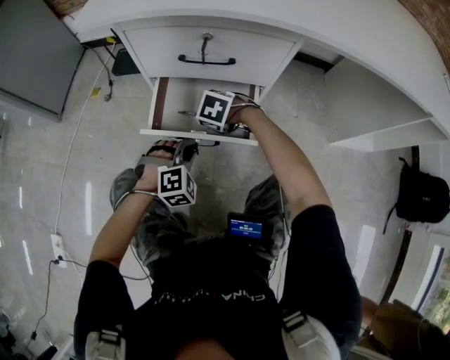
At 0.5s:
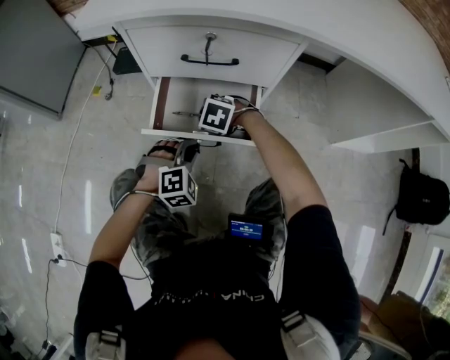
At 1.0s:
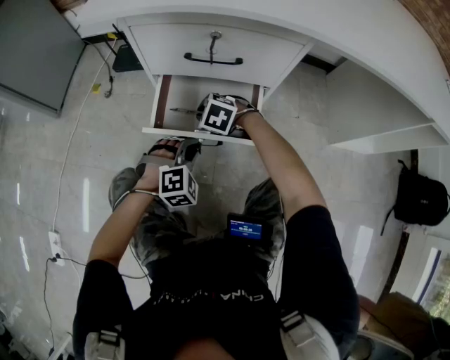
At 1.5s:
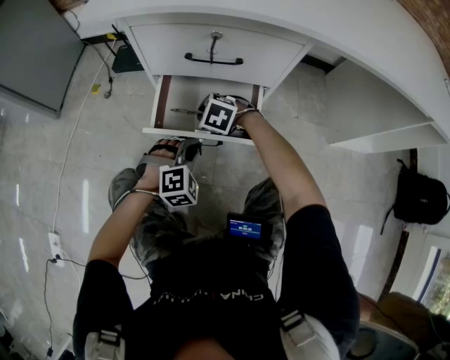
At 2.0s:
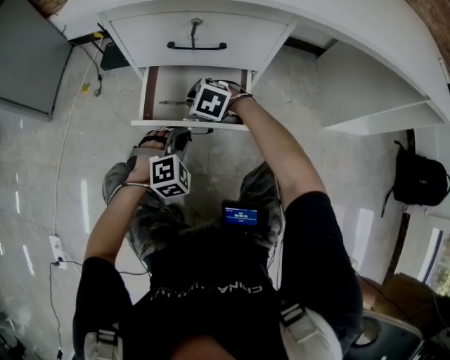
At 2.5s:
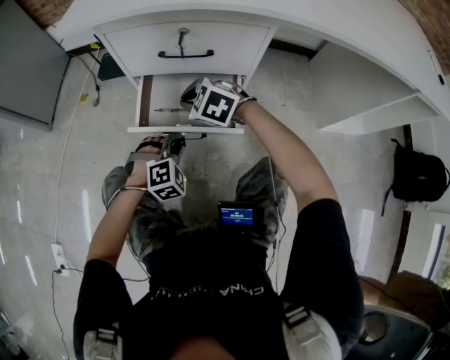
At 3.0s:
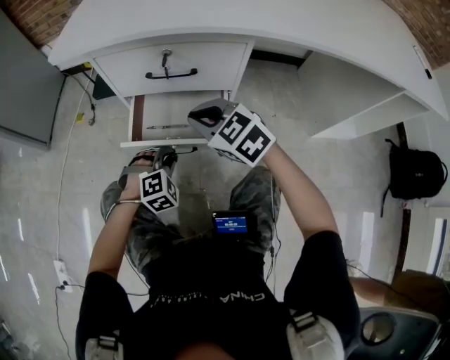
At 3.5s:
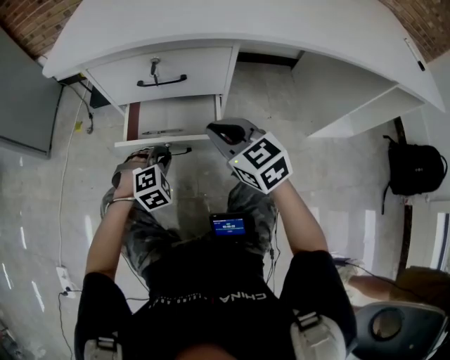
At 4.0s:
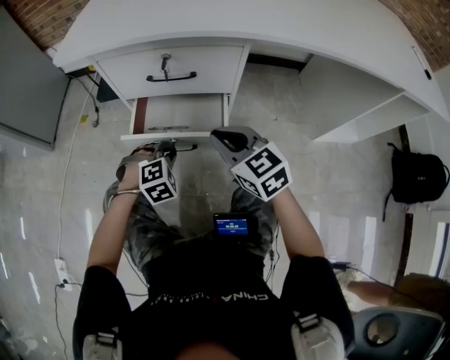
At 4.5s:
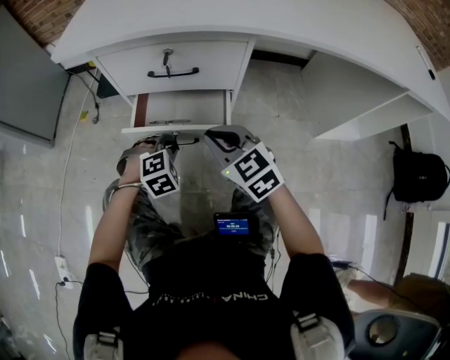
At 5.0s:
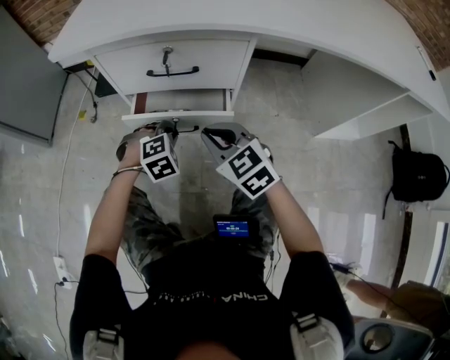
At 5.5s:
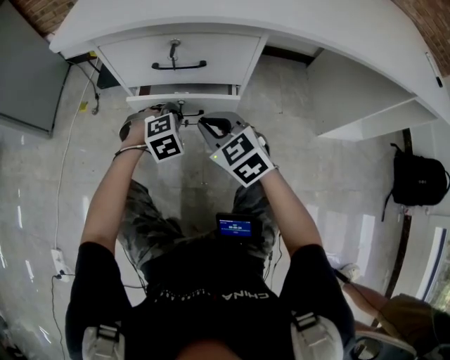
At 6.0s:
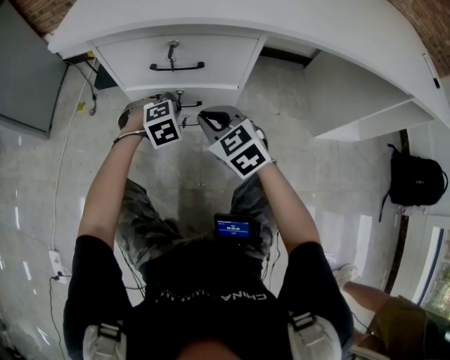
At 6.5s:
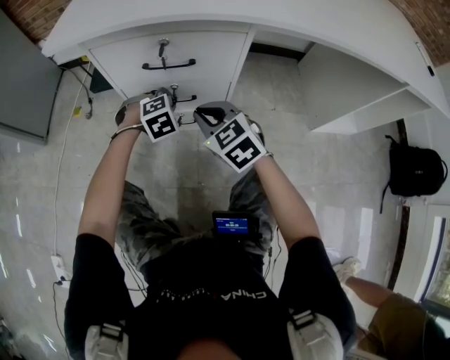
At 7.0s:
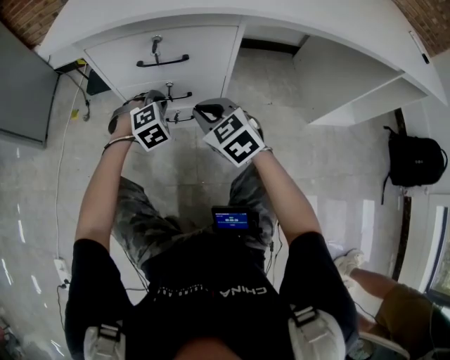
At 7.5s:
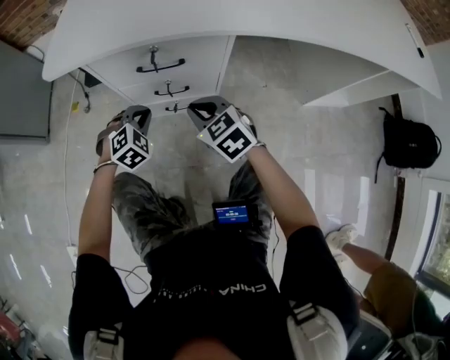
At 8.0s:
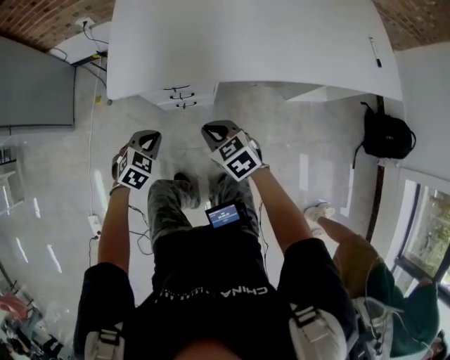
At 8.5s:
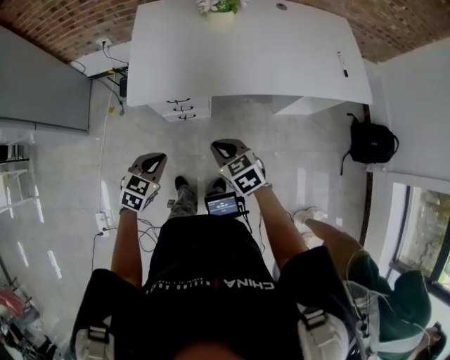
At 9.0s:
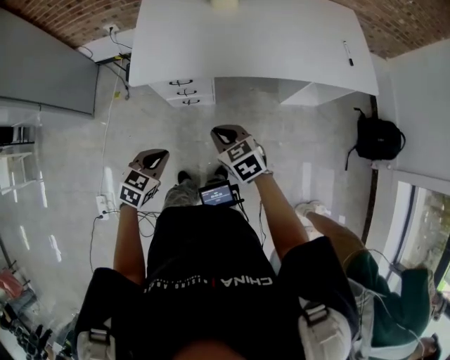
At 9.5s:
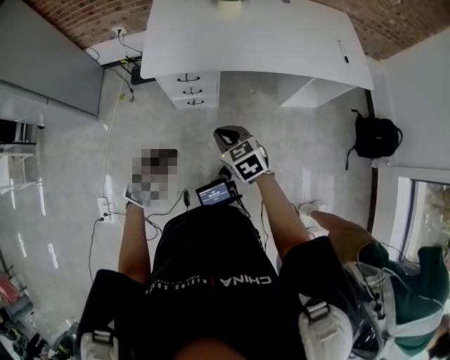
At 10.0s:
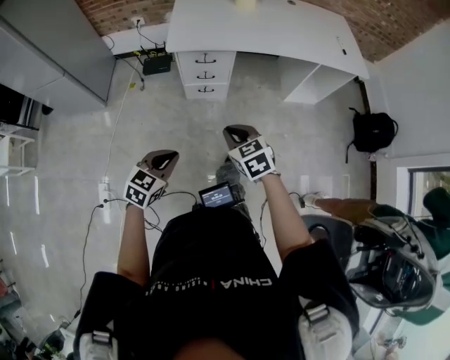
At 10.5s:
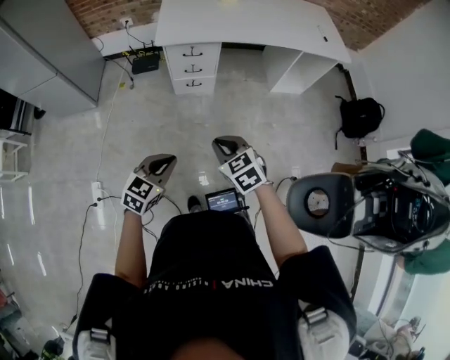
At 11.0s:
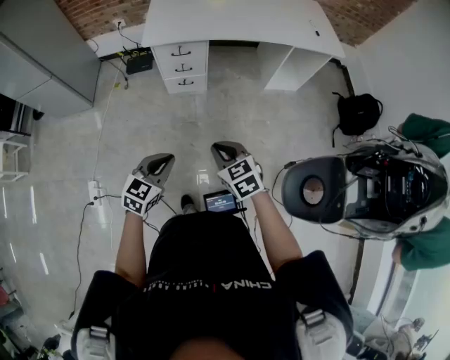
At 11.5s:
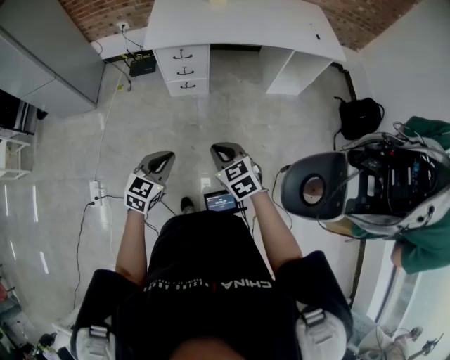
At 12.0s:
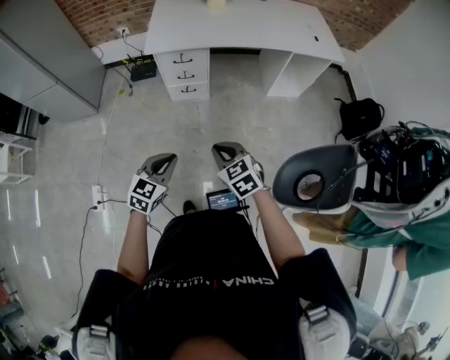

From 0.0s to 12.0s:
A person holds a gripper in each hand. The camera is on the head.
From 0.0s to 2.0s: The grippers move only a little.
From 2.0s to 4.0s: The right gripper moves upward, backward and to the right, about 25 cm, and tilts its fingers about 30 degrees upward.
From 4.0s to 6.0s: The right gripper shifts approximately 5 cm forward, while the left gripper heads forward, covering roughly 10 cm.
From 6.0s to 8.0s: The left gripper moves upward and backward, approximately 35 cm, and rotates about 30 degrees, while the right gripper is displaced upward by approximately 25 cm, and swivels approximately 20 degrees.
From 8.0s to 10.0s: Both grippers move backward and upward, some 50 cm. The left gripper changes its angle by approximately 20 degrees.
From 10.0s to 12.0s: The left gripper is displaced to the right and backward by approximately 15 cm, while the right gripper heads backward and to the right, covering some 15 cm.

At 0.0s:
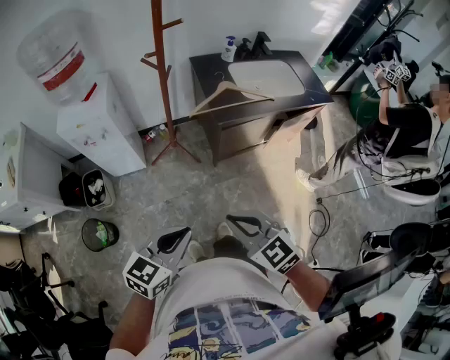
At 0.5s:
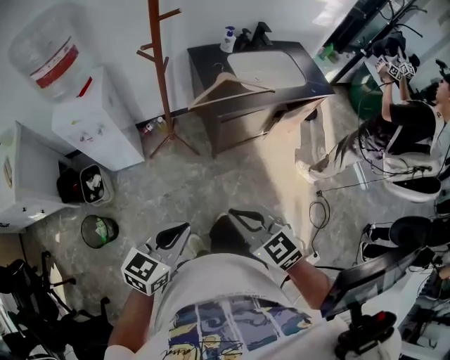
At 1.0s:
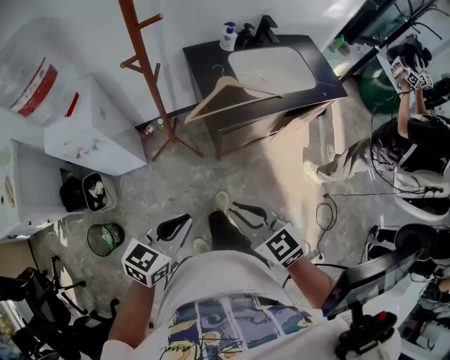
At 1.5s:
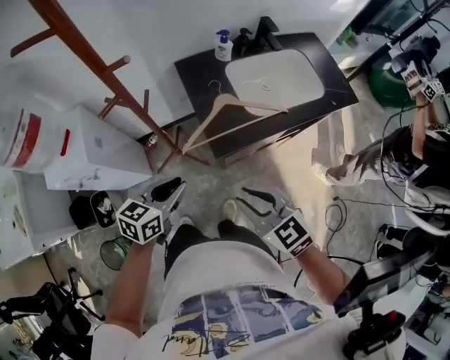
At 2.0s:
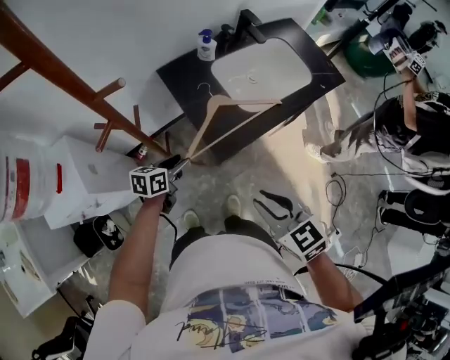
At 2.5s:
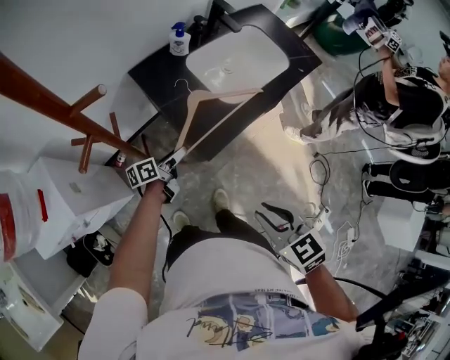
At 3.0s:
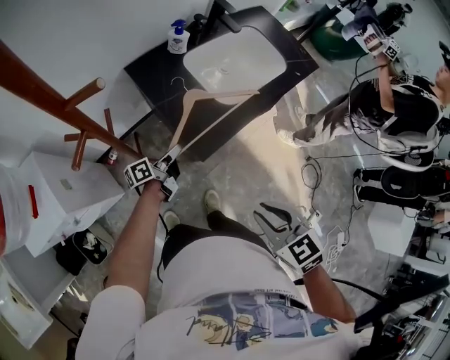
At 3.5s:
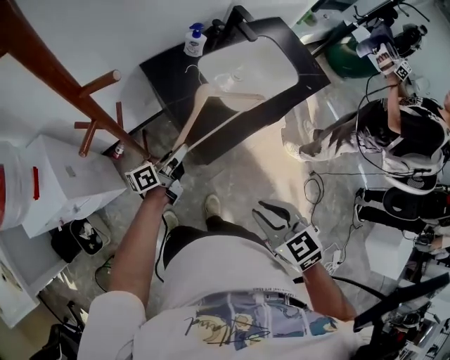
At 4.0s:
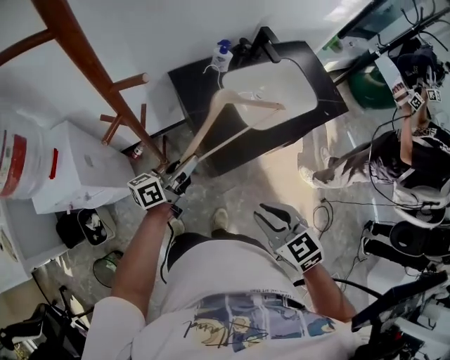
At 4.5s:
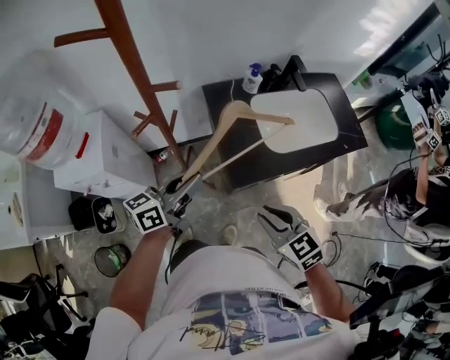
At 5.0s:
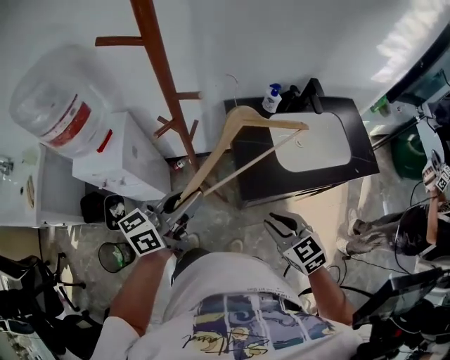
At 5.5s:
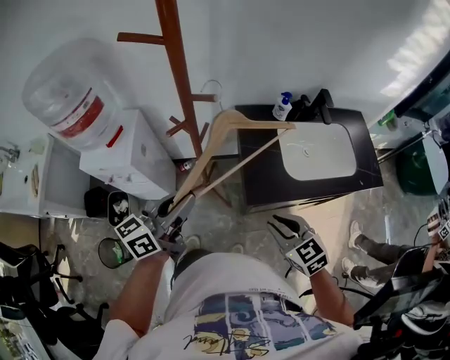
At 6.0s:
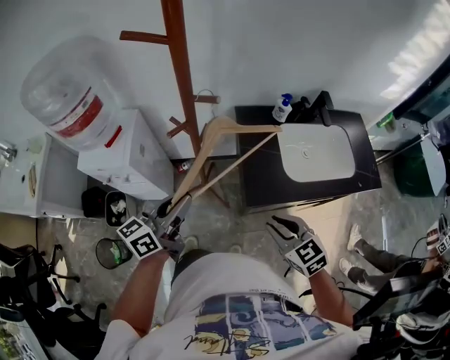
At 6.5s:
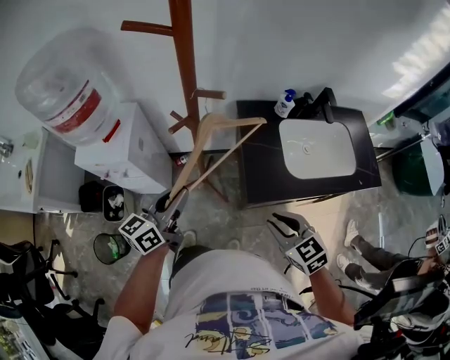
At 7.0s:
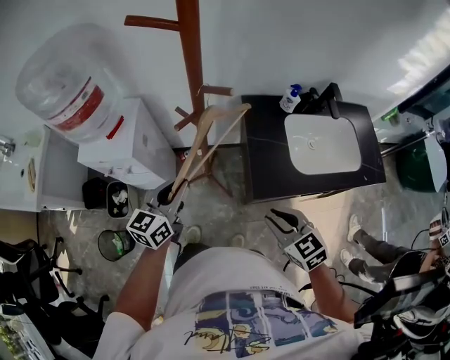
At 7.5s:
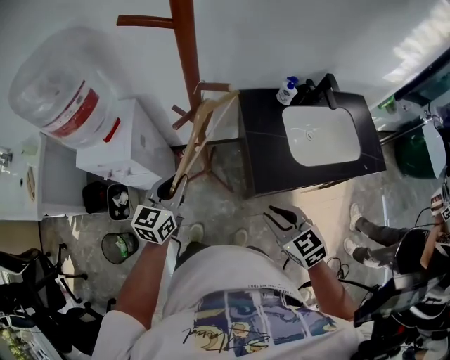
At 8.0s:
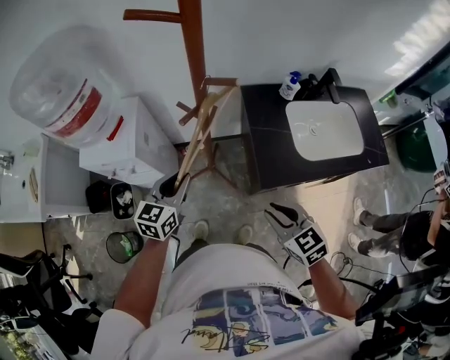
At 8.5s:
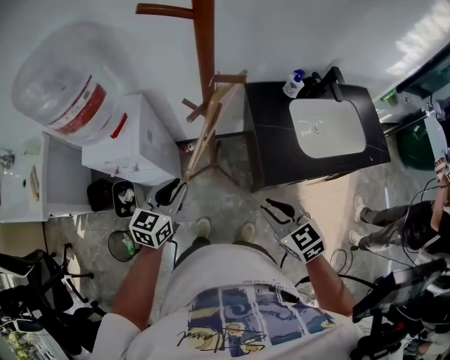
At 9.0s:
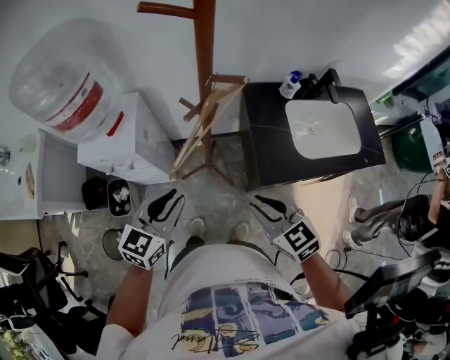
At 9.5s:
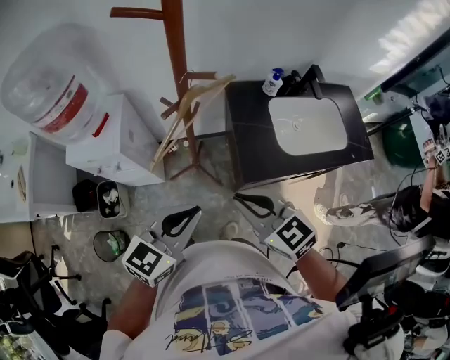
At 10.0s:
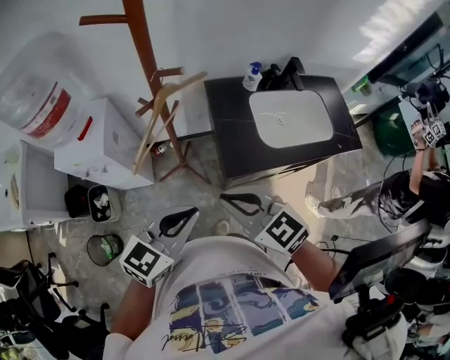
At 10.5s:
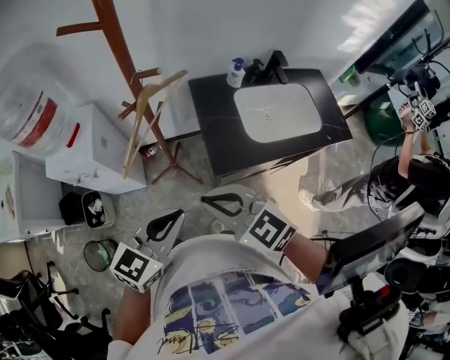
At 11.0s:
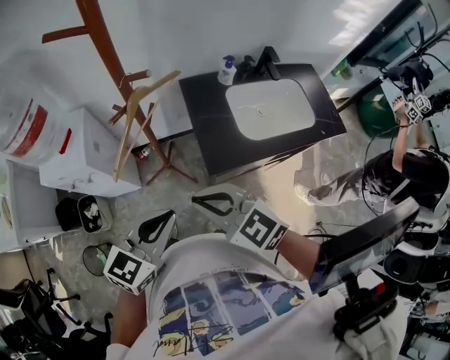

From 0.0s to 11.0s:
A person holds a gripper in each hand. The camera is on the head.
From 0.0s to 2.0s: The right gripper heads forward, covering some 30 cm, changes its angle by roughly 30 degrees, and opens its fingers. The left gripper heads forward, covering some 50 cm, turns by approximately 30 degrees, and opens up.
From 2.0s to 3.5s: The left gripper travels downward and back again, roughly 5 cm each way, tilts its fingers about 30 degrees upward, and closes its fingers.
From 3.5s to 5.5s: The left gripper shifts approximately 25 cm upward, and rotates some 40 degrees, while the right gripper changes place by some 10 cm, and rotates some 30 degrees.
From 5.5s to 7.5s: The left gripper shifts roughly 15 cm downward, to the left and forward, and turns by approximately 30 degrees, while the right gripper travels to the left by about 5 cm.
From 7.5s to 9.0s: The right gripper is displaced to the left by about 5 cm. Meanwhile the left gripper shifts some 10 cm backward.
From 9.0s to 11.0s: The left gripper moves to the right and backward, some 15 cm, while the right gripper heads upward, covering some 5 cm.

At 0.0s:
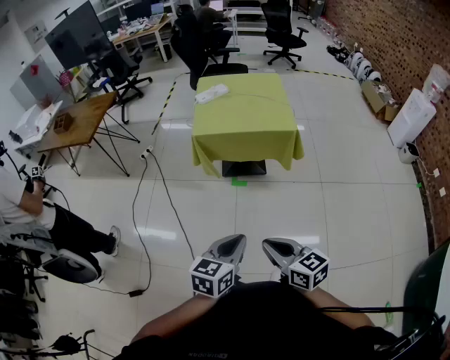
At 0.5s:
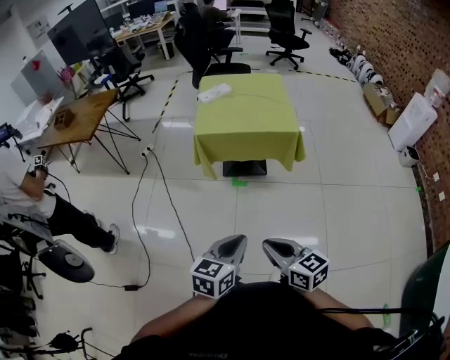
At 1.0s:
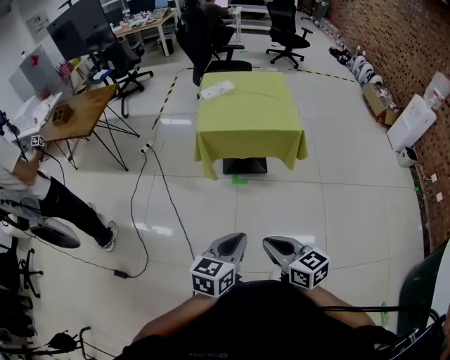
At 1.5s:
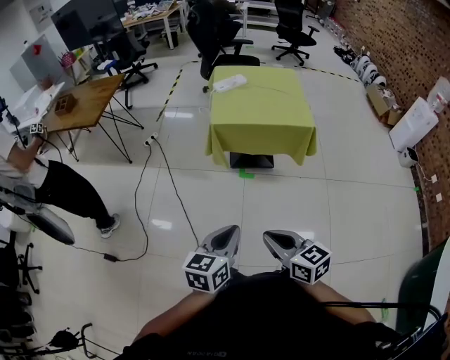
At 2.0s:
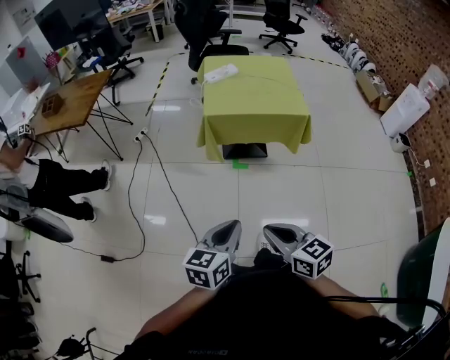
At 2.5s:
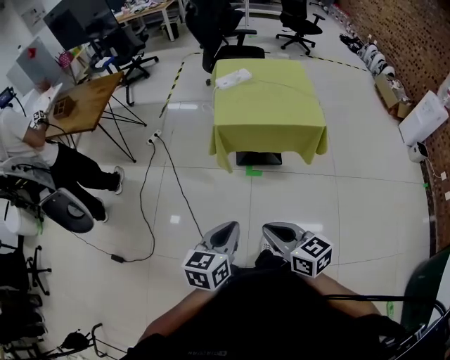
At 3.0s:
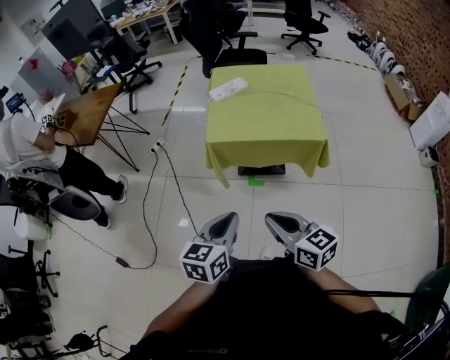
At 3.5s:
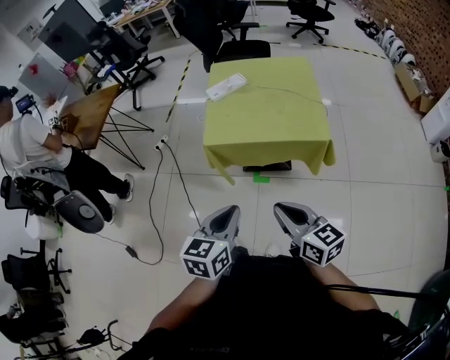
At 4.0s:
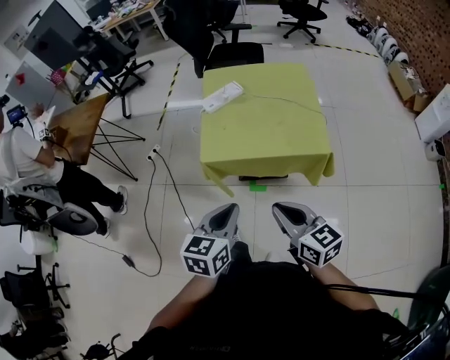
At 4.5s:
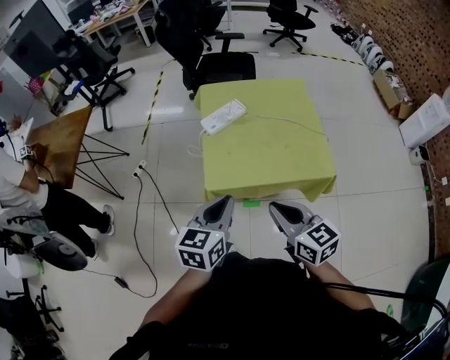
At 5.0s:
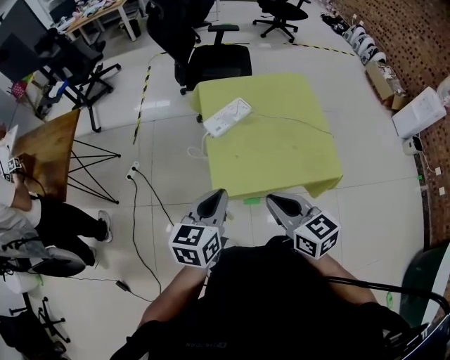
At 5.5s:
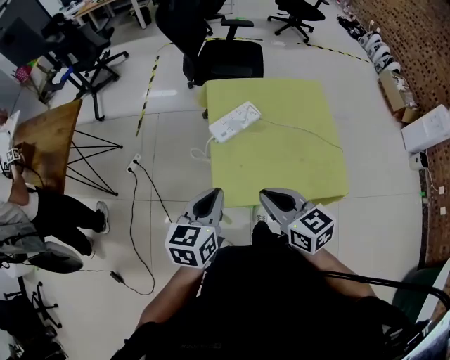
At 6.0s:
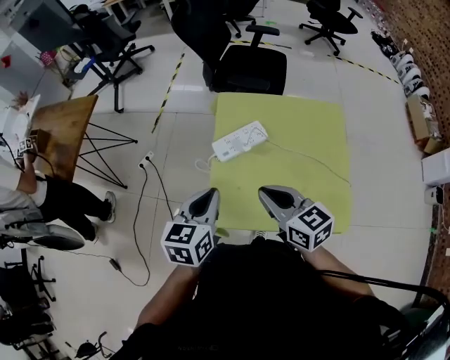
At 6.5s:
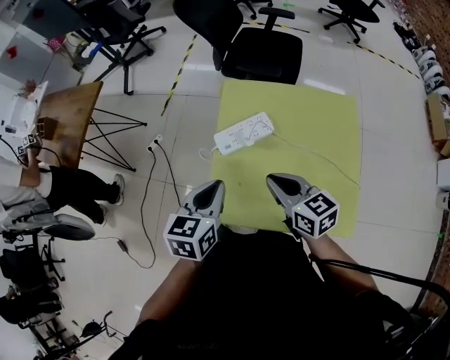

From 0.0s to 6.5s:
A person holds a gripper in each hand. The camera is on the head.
From 0.0s to 2.0s: Both grippers travel together to the left, approximately 15 cm.
From 2.0s to 4.5s: The pair of grippers is taken forward, about 50 cm.
From 4.5s to 6.5s: Both grippers move forward, roughly 25 cm.
